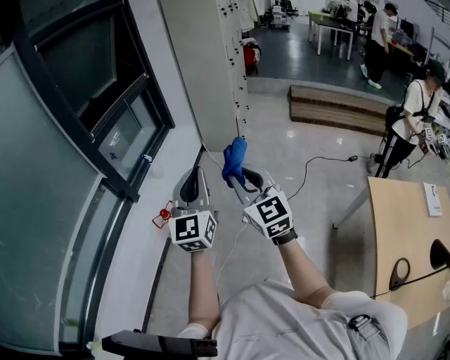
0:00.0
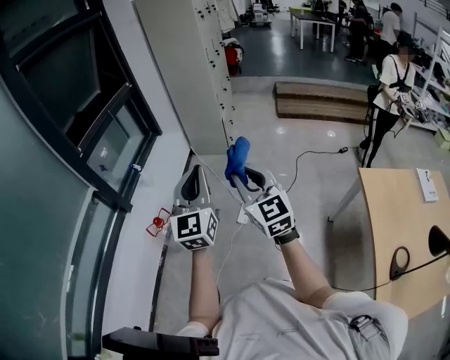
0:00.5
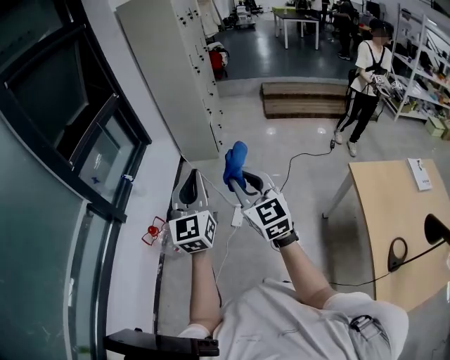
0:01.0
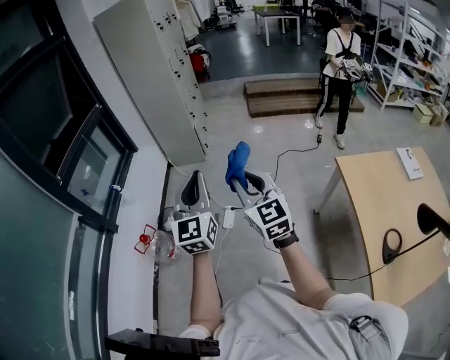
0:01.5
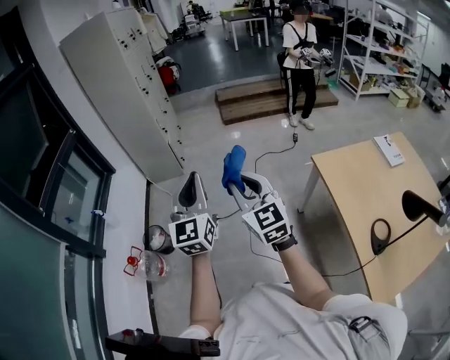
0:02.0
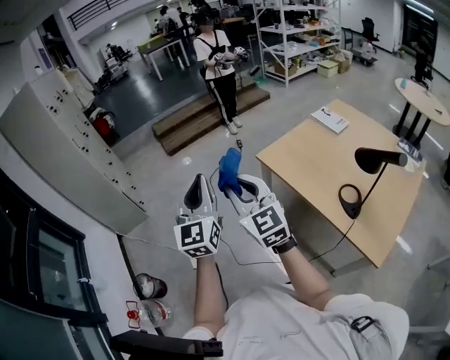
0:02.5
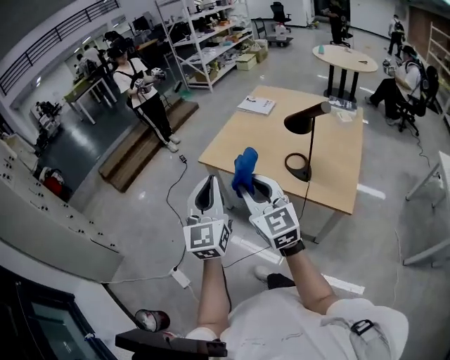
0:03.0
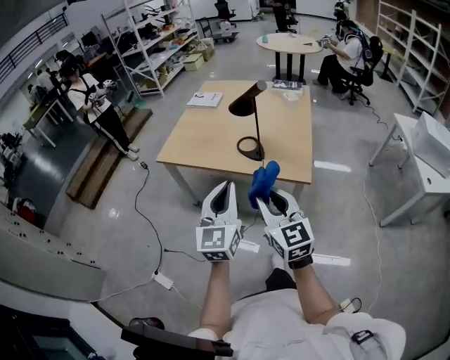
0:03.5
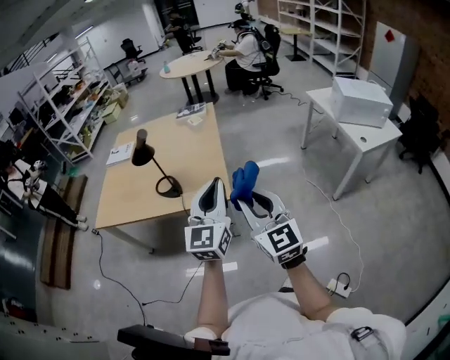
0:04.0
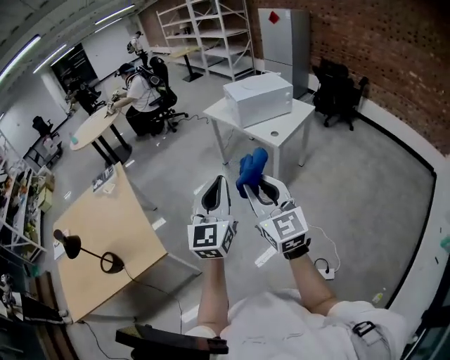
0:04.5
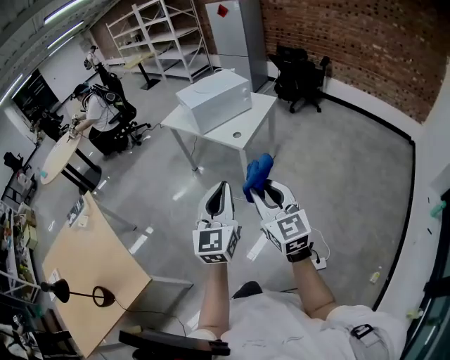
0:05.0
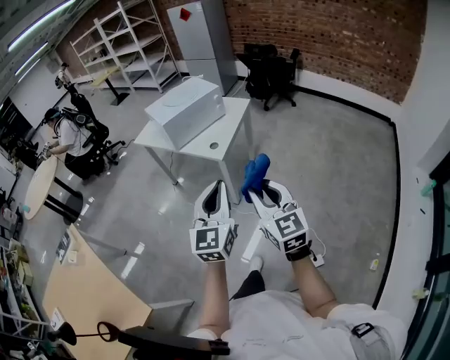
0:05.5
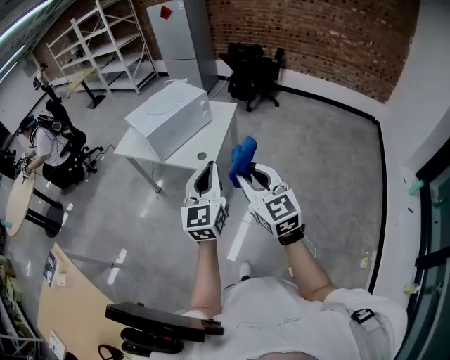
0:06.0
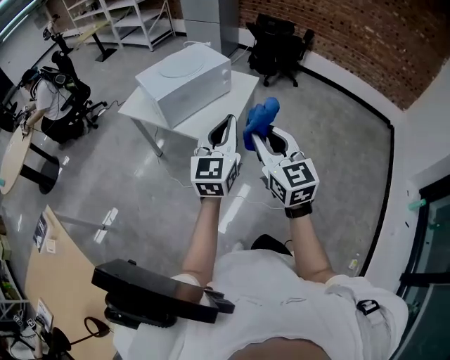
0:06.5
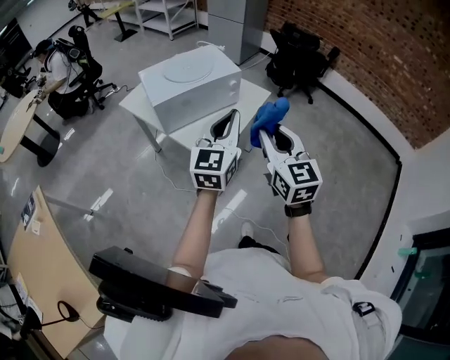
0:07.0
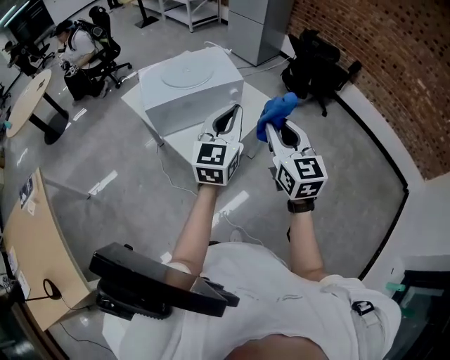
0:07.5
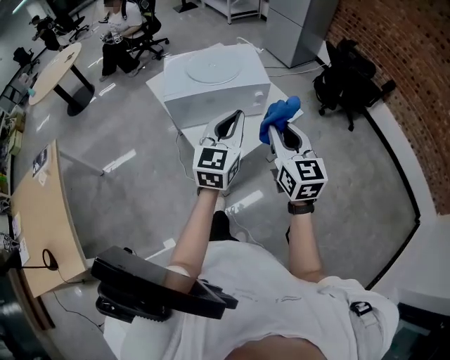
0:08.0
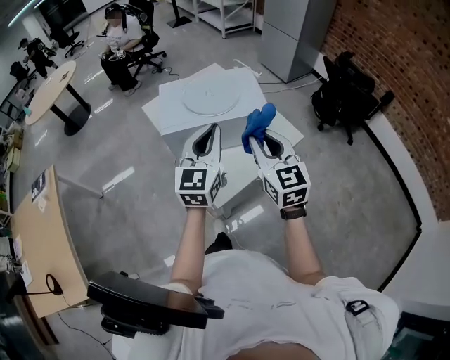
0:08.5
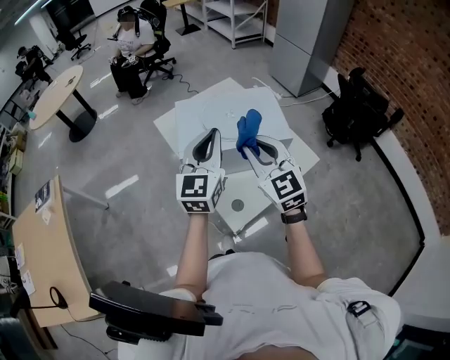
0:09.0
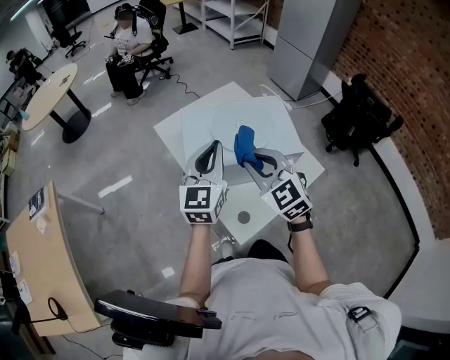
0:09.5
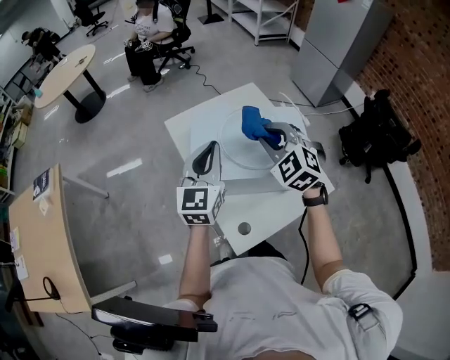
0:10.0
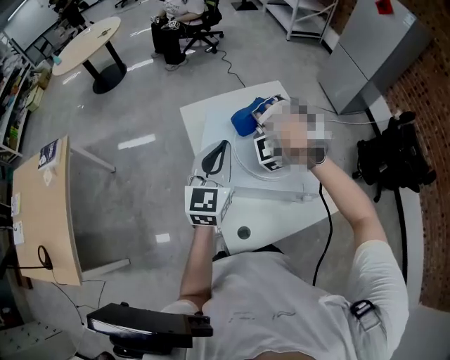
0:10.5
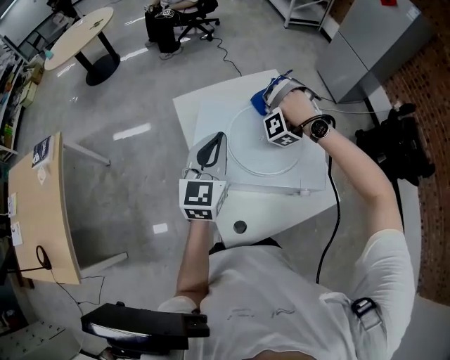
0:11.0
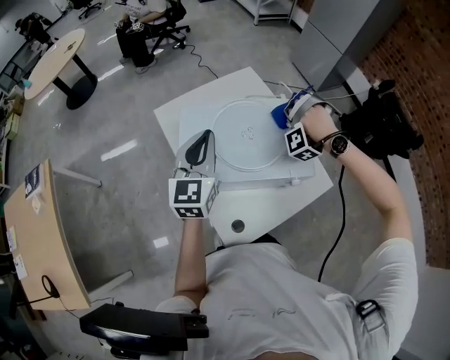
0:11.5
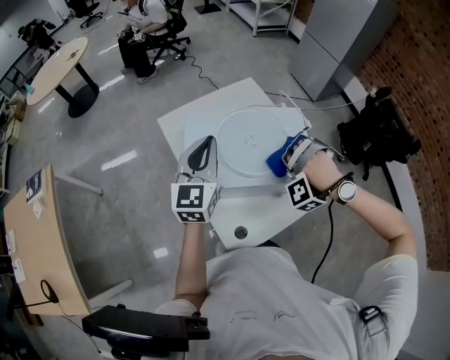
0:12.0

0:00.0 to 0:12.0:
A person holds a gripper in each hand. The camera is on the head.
0:00.0 to 0:02.0: The left gripper ends up roughly 25 cm from where it was.
0:02.0 to 0:04.0: The left gripper changes place by some 80 cm, and changes its angle by some 100 degrees.
0:04.0 to 0:06.0: The left gripper moves about 70 cm, and changes its angle by about 50 degrees.
0:06.0 to 0:08.0: The left gripper changes place by about 35 cm, and changes its angle by roughly 20 degrees.
0:08.0 to 0:10.0: The left gripper shifts by some 30 cm.

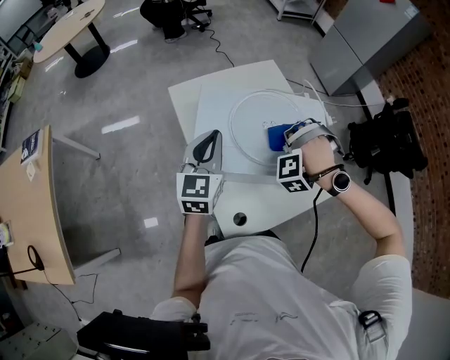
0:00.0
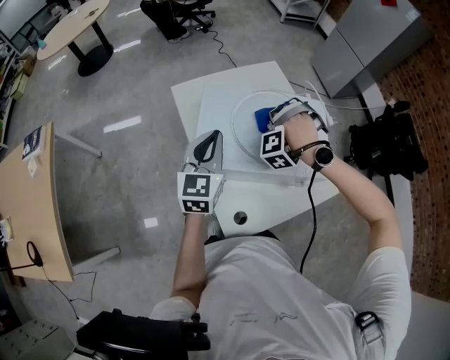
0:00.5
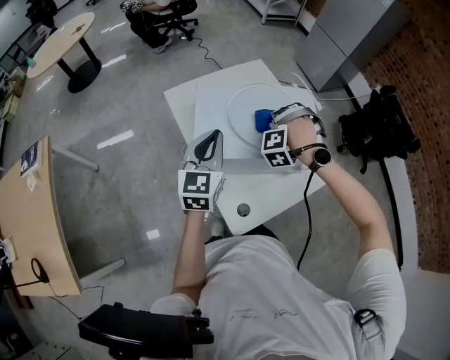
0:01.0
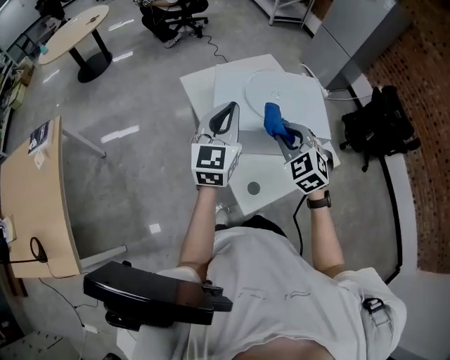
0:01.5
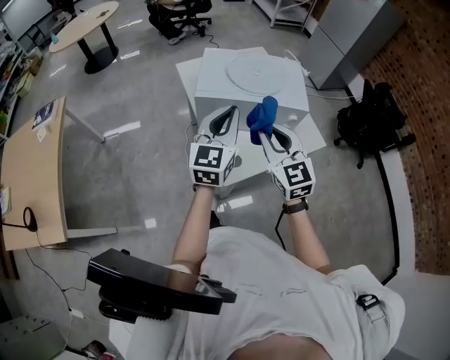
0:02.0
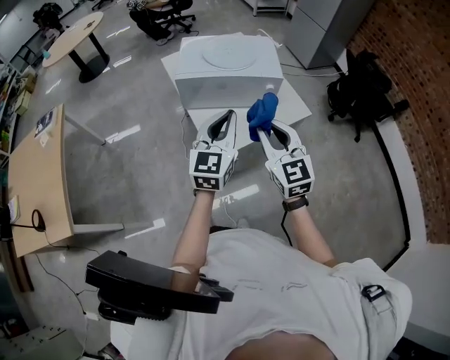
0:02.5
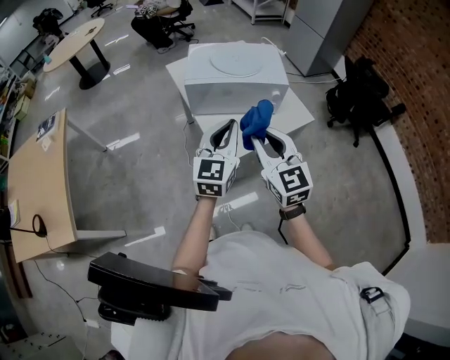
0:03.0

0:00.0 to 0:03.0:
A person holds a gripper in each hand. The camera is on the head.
0:00.0 to 0:01.5: The left gripper moves approximately 10 cm.
0:01.5 to 0:03.0: The left gripper moves roughly 30 cm.

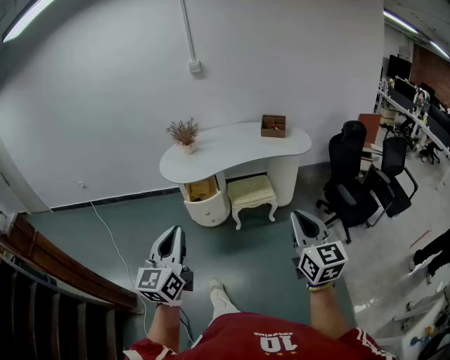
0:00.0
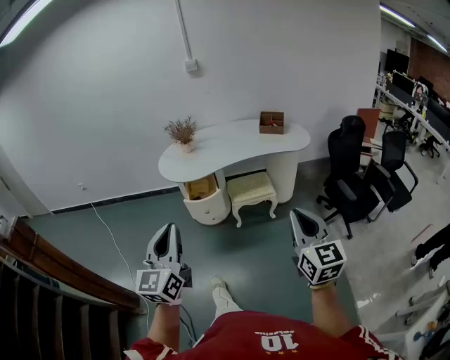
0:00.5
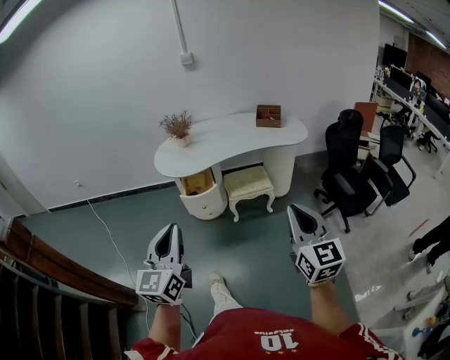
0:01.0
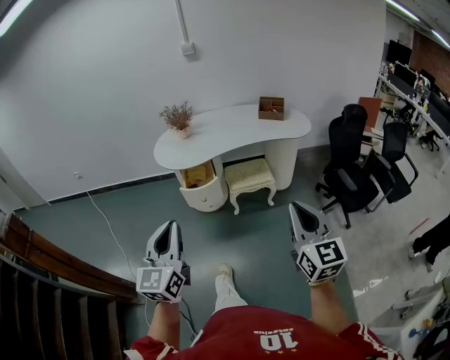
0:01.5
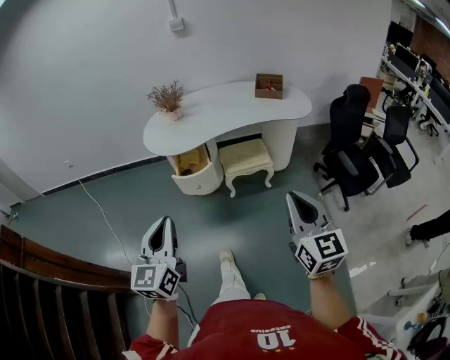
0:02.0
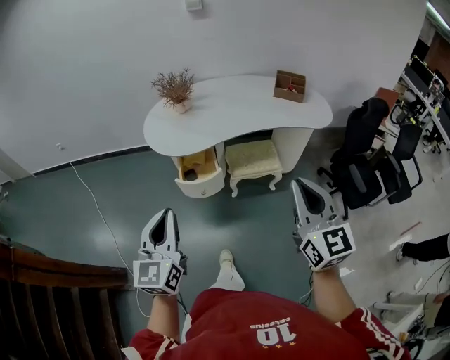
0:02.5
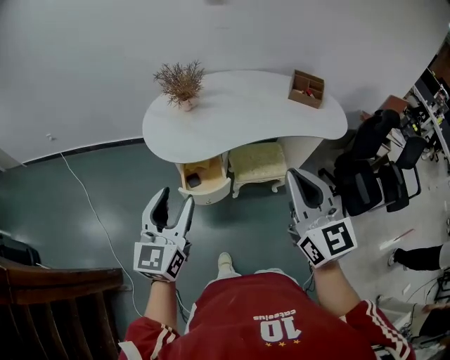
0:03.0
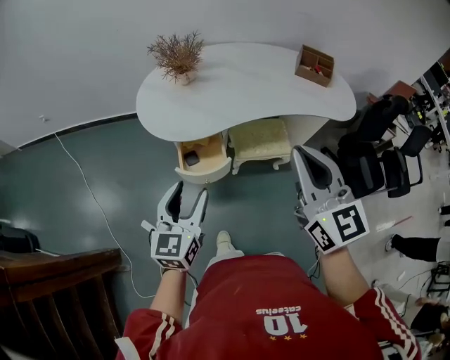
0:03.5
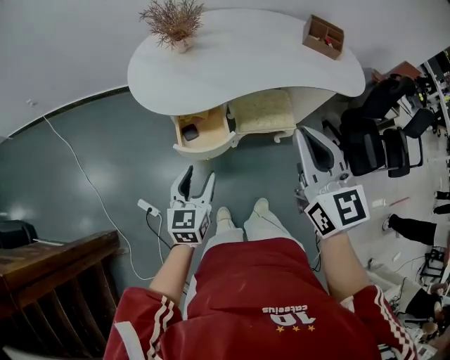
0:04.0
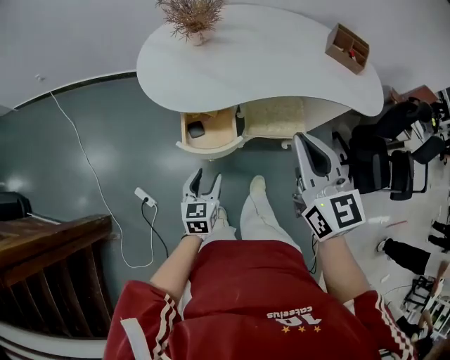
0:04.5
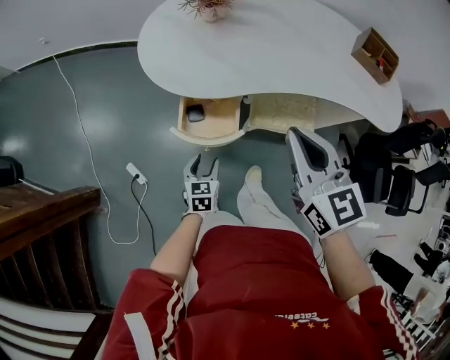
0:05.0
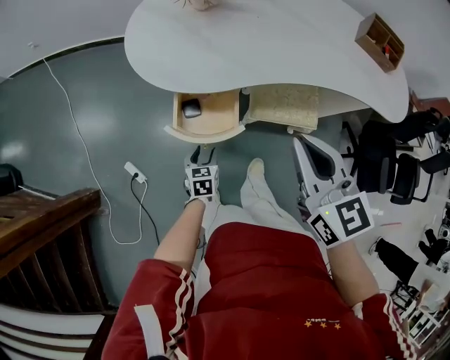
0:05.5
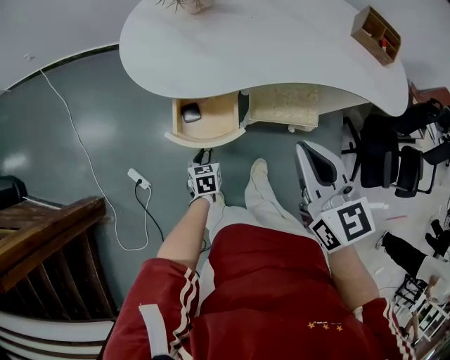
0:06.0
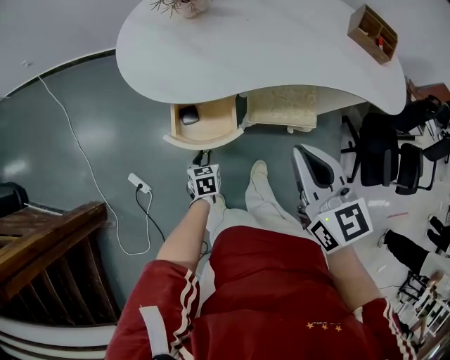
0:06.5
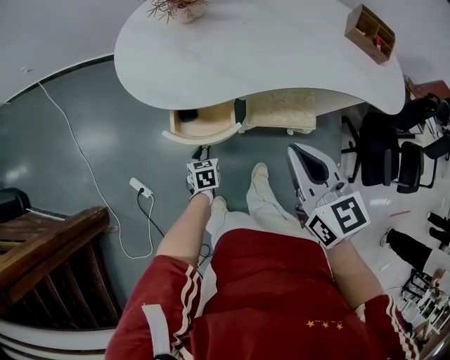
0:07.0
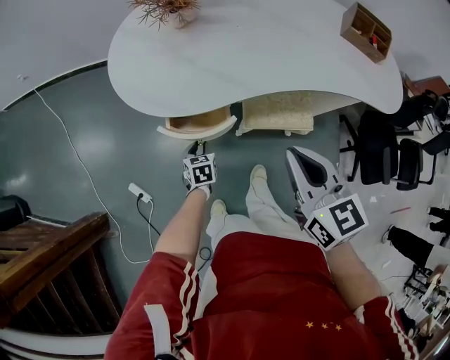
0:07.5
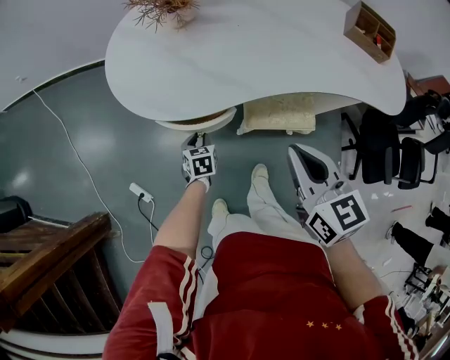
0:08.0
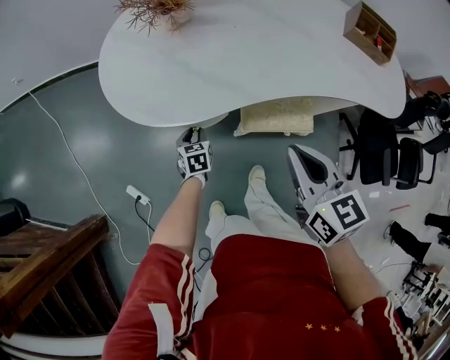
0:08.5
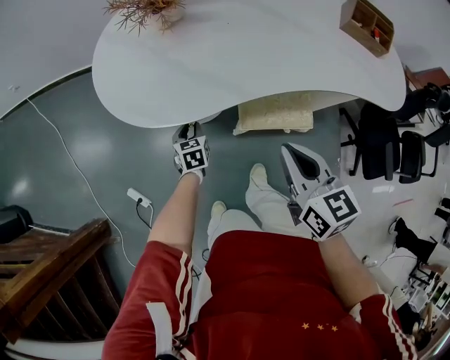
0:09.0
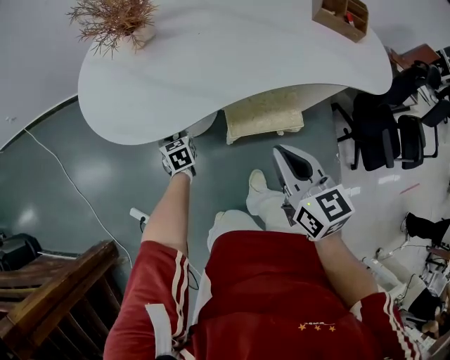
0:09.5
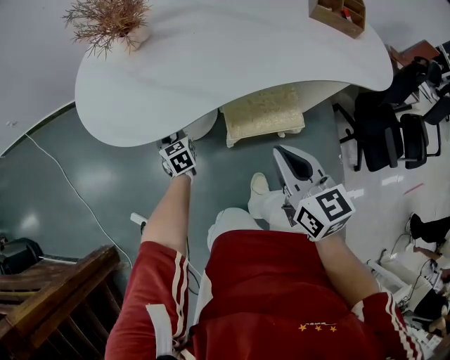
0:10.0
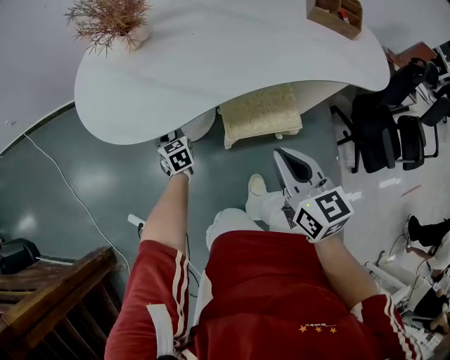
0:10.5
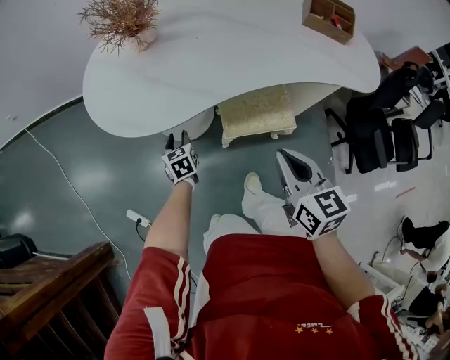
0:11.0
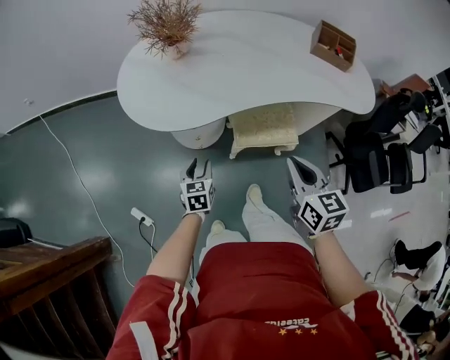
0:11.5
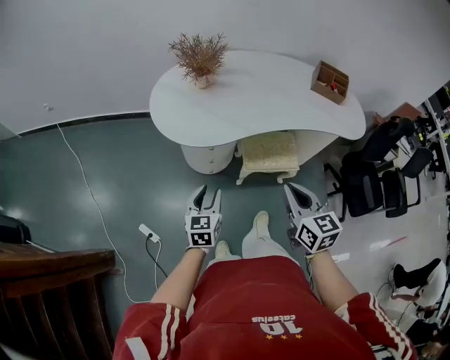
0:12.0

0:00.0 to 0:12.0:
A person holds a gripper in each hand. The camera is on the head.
0:00.0 to 0:02.0: Both grippers travel together forward, roughly 10 cm.
0:02.0 to 0:04.0: The right gripper is displaced forward and to the left by approximately 40 cm. Meanwhile the left gripper is displaced forward and downward by roughly 40 cm, rotates approximately 20 degrees, and opens.
0:04.0 to 0:06.0: The right gripper travels downward and forward by approximately 15 cm. Meanwhile the left gripper goes approximately 30 cm downward, angles its fingers downward, by some 30 degrees, and closes its fingers.
0:06.0 to 0:08.0: The right gripper ends up roughly 5 cm from where it was; the left gripper travels forward by approximately 10 cm.
0:08.0 to 0:10.0: The left gripper moves forward, some 10 cm. The right gripper moves downward, approximately 5 cm.
0:10.0 to 0:12.0: The left gripper moves upward and backward, approximately 35 cm, and rotates some 20 degrees, while the right gripper is displaced upward, backward and to the left by approximately 20 cm.
